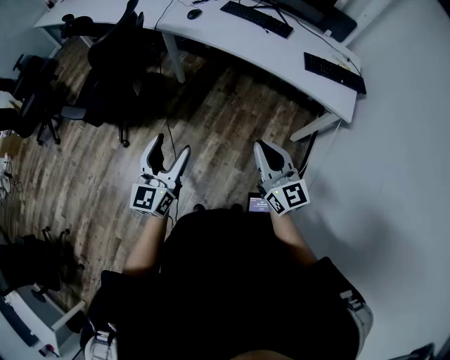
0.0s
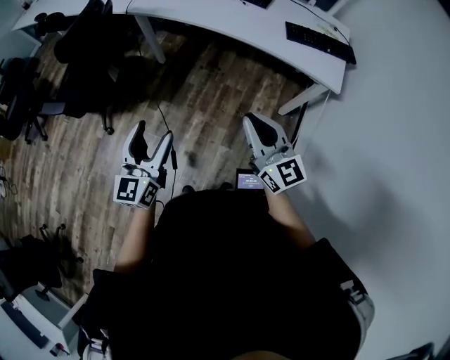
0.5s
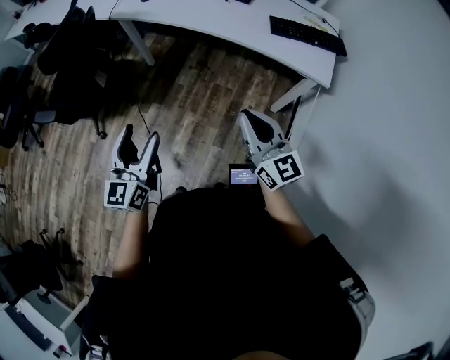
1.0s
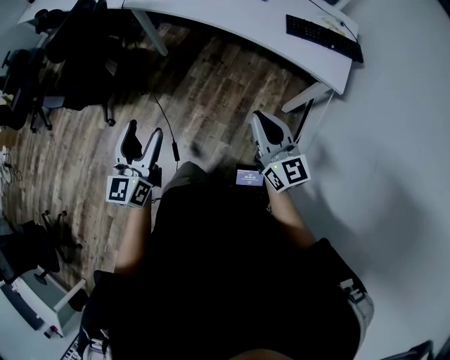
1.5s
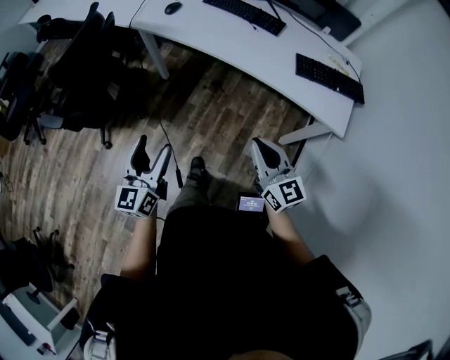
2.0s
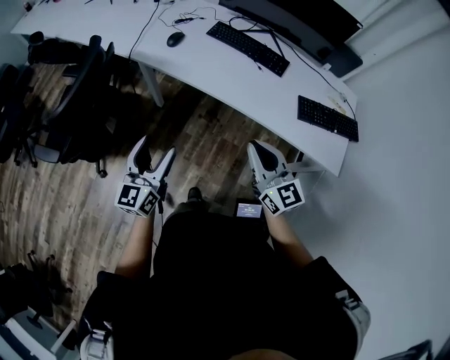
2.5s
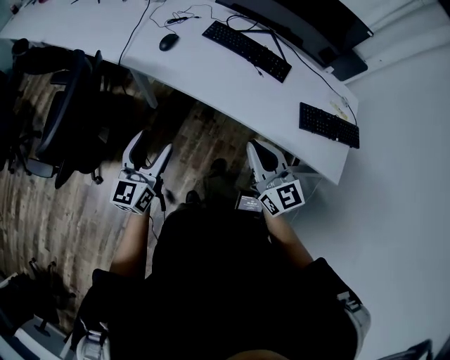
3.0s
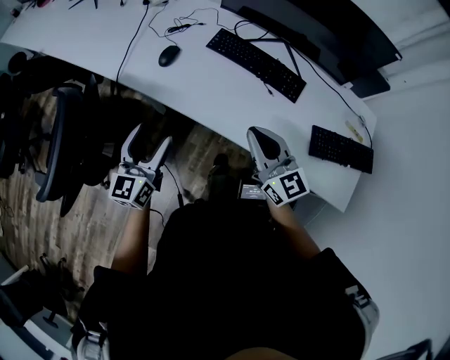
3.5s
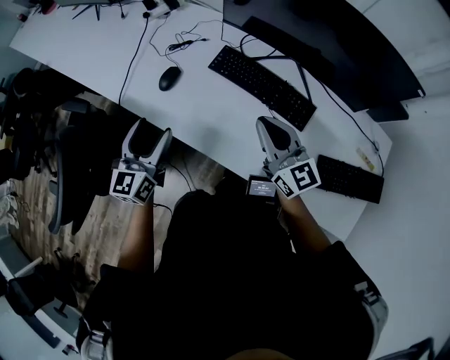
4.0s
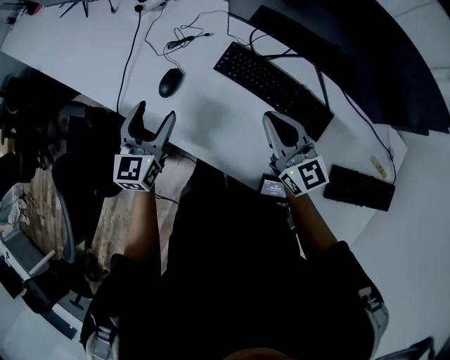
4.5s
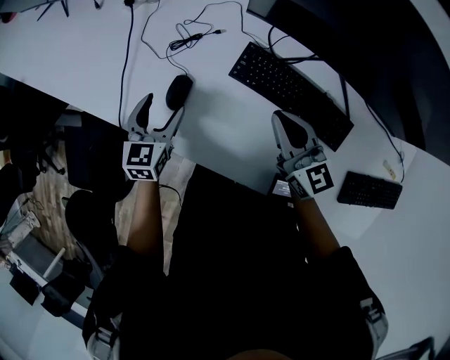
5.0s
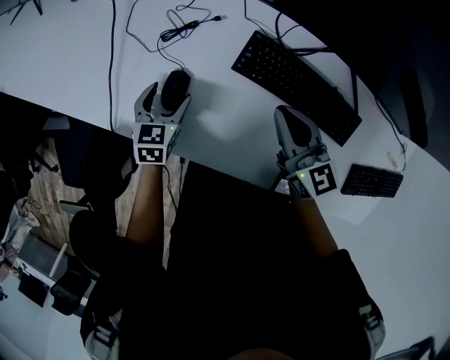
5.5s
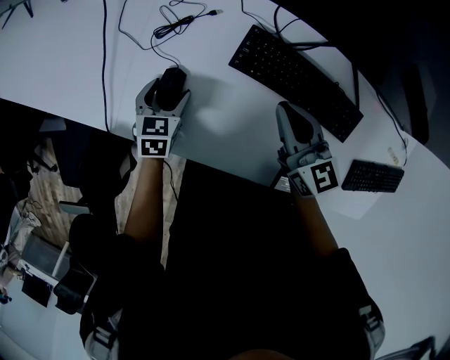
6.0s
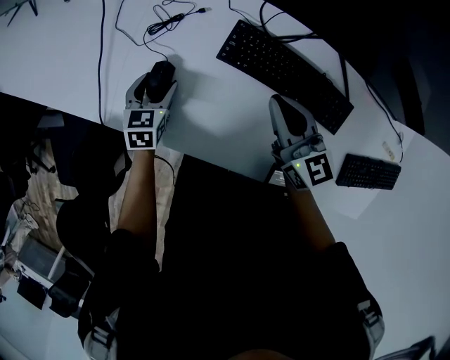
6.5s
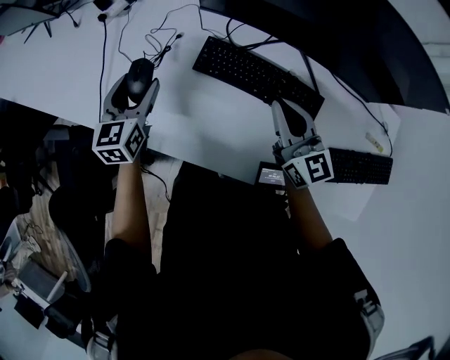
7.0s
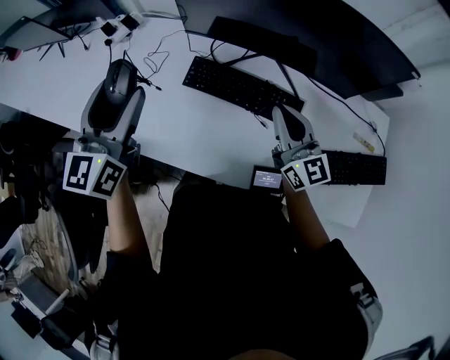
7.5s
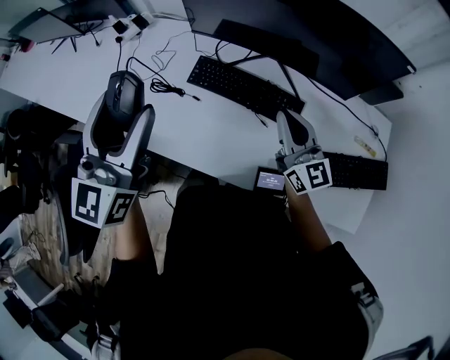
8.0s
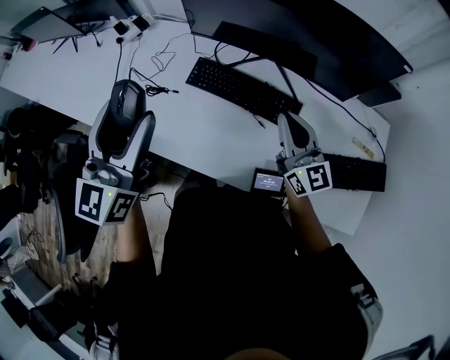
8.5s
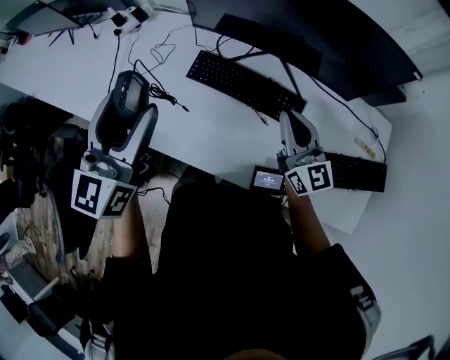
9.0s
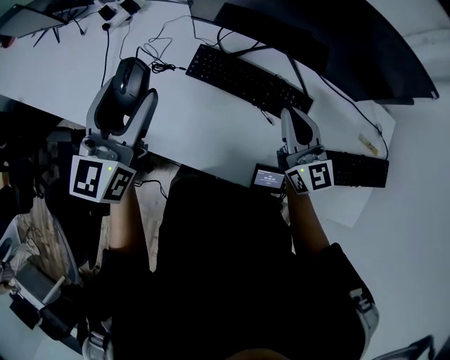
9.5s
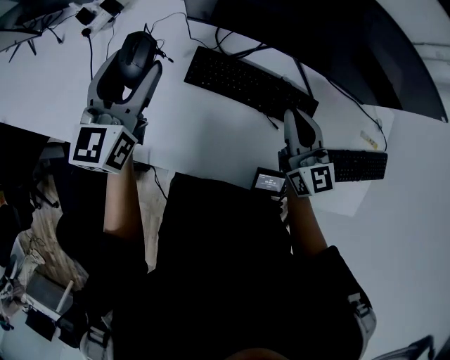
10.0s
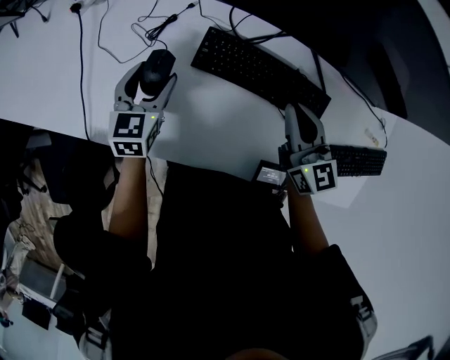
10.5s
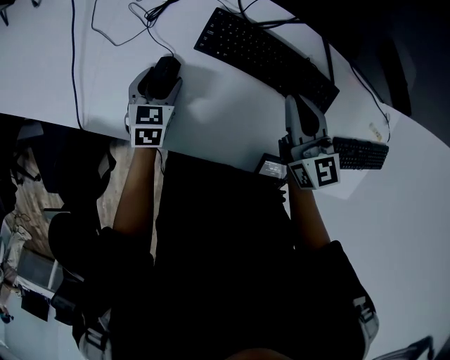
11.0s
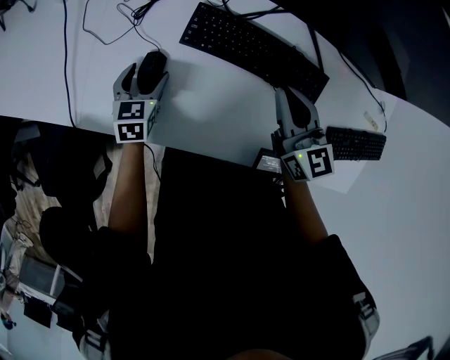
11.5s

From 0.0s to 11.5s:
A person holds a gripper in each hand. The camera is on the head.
From 0.0s to 2.0s: The two grippers go about 15 cm forward, to the right and downward.
From 2.0s to 4.0s: The two grippers travel together, forward, roughly 60 cm.
From 4.0s to 6.0s: The left gripper moves downward and forward, roughly 35 cm, and tilts its fingers about 40 degrees downward. Meanwhile the right gripper goes approximately 25 cm forward and downward, and swivels roughly 20 degrees.
From 6.0s to 7.5s: The left gripper is displaced upward by some 40 cm, and points its fingers approximately 50 degrees further upward; the right gripper travels to the right, upward and backward by approximately 25 cm, and turns by approximately 20 degrees.
From 7.5s to 9.5s: The left gripper moves some 10 cm backward and comes back.
From 9.5s to 11.5s: The right gripper goes roughly 10 cm downward and to the left. The left gripper goes some 35 cm downward, and tips its fingers downward by some 40 degrees.

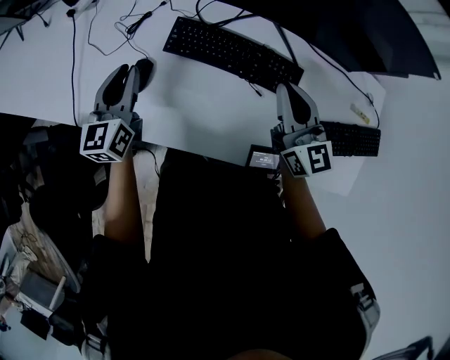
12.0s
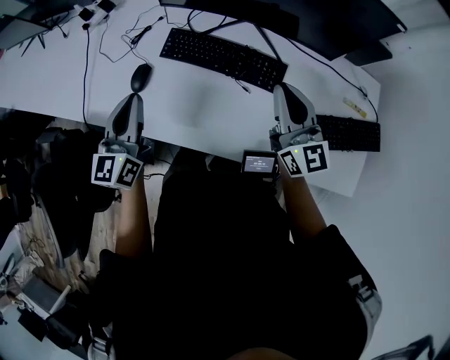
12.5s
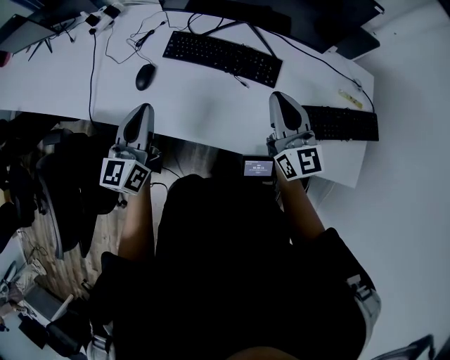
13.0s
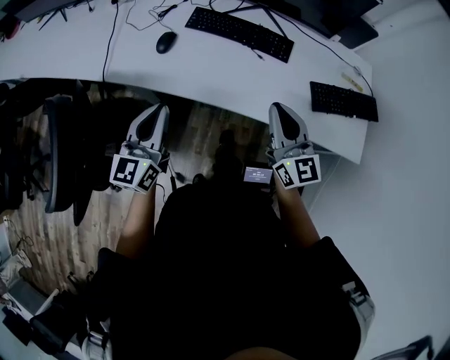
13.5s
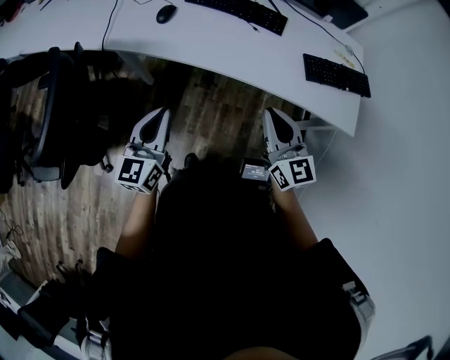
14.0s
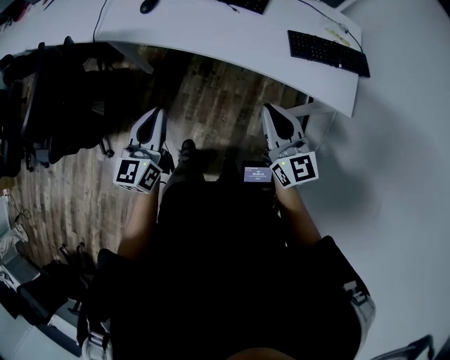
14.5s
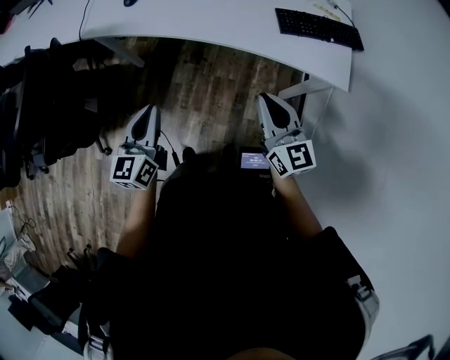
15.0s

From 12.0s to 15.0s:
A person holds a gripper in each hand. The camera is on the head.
From 12.0s to 13.5s: Both grippers move backward, approximately 30 cm.
From 13.5s to 15.0s: Both grippers travel together backward and to the right, roughly 25 cm.

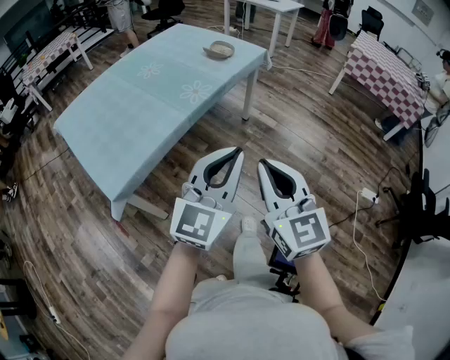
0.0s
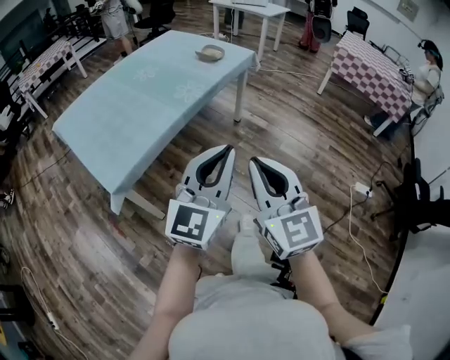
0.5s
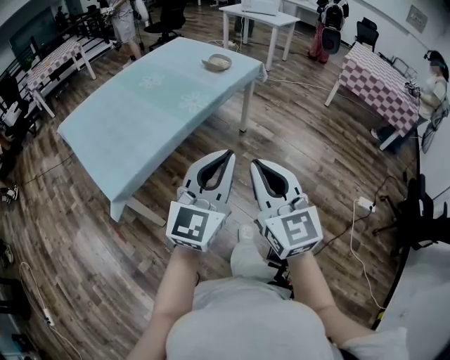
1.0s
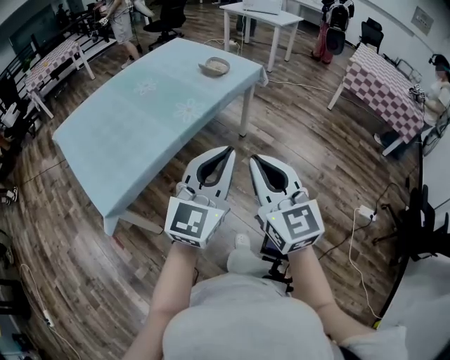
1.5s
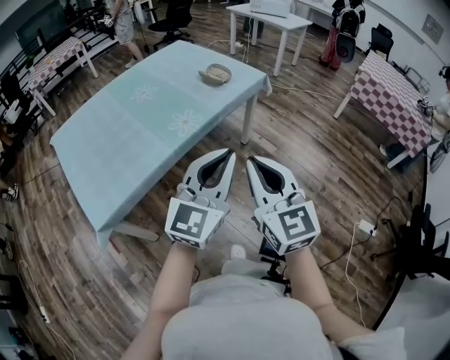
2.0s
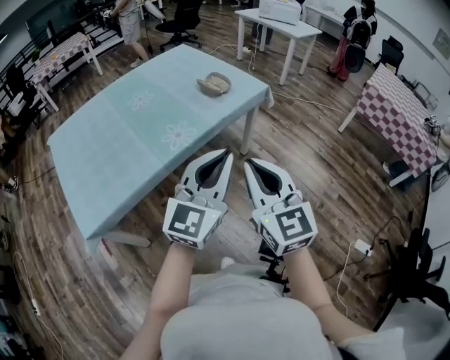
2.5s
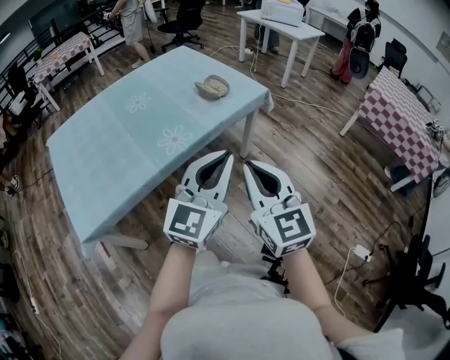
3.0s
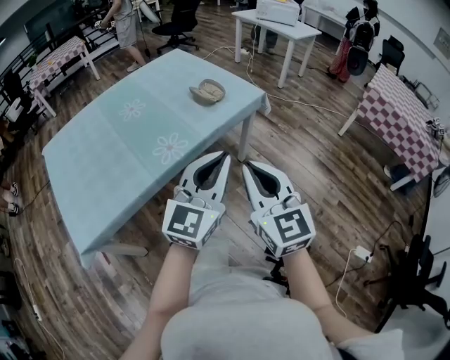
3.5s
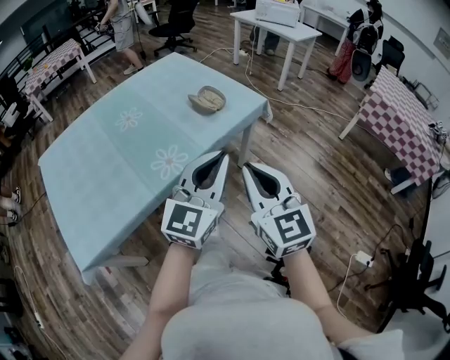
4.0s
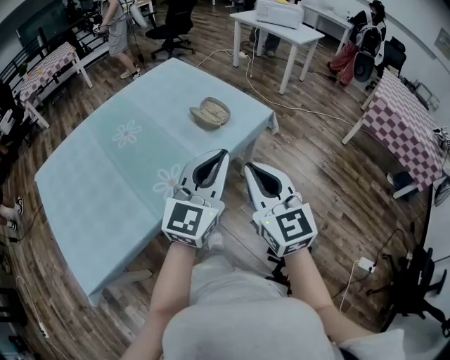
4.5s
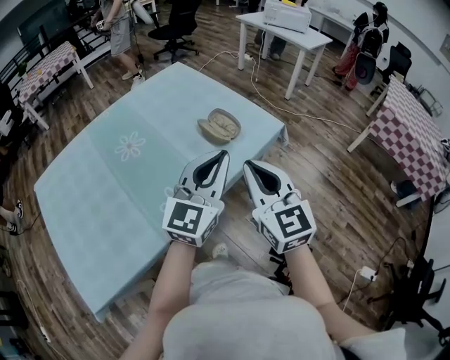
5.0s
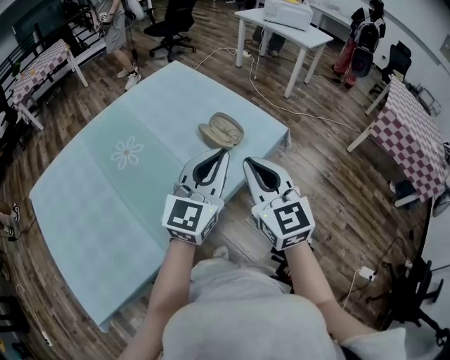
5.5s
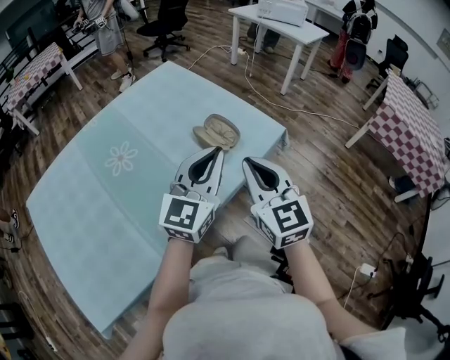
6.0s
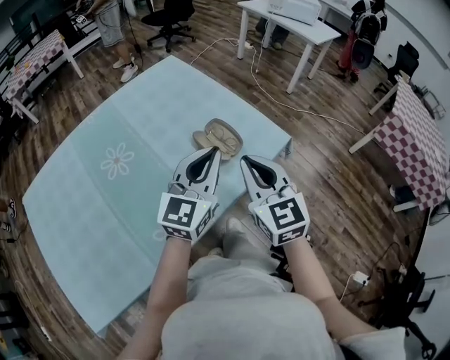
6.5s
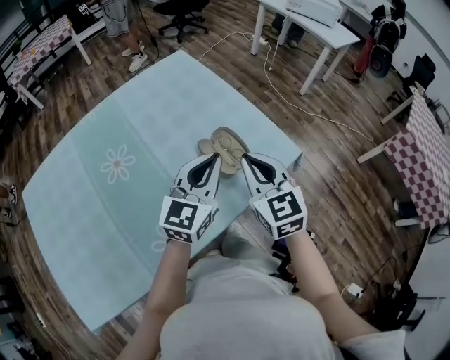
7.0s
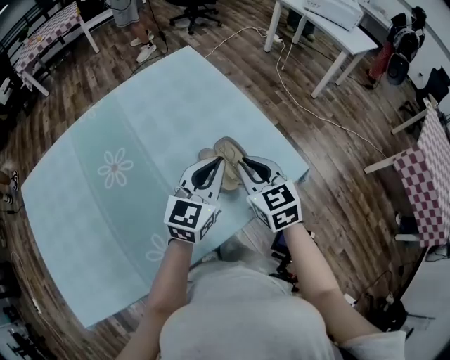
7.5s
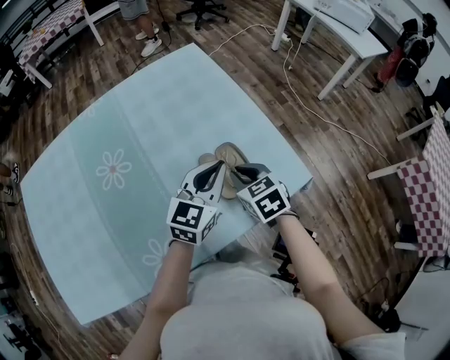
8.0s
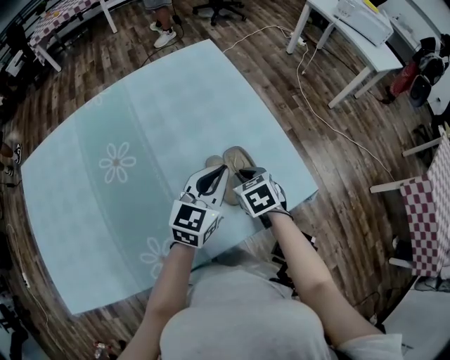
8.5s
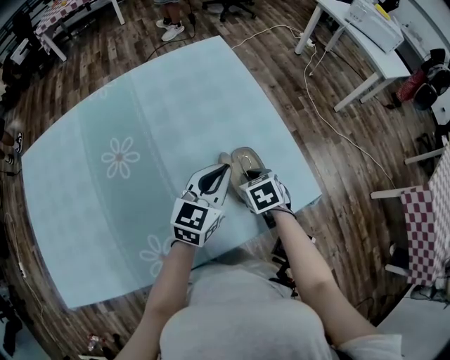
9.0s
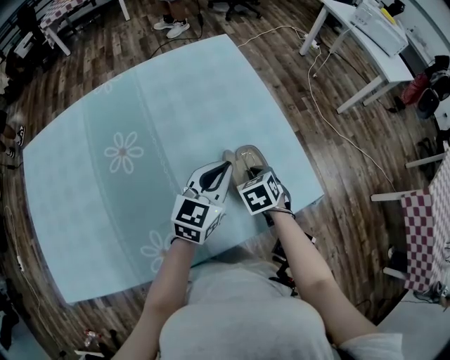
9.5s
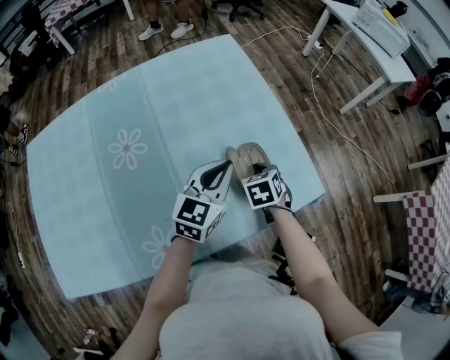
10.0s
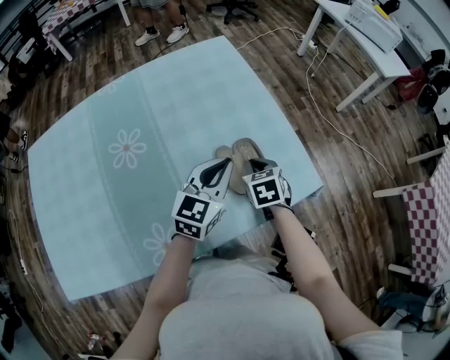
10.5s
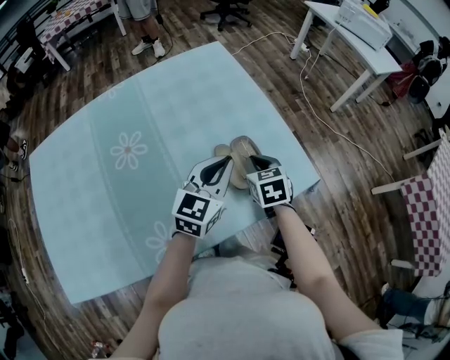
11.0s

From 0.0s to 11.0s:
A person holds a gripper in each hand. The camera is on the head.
From 0.0s to 2.0s: Both grippers travel together forward, roughly 15 cm.
From 2.0s to 3.5s: The right gripper travels forward and to the right by about 15 cm; the left gripper shifts roughly 15 cm forward.
From 3.5s to 5.5s: The grippers both shift forward by about 30 cm.
From 5.5s to 7.5s: Both grippers travel together forward and downward, about 25 cm. The right gripper swivels approximately 30 degrees.
From 7.5s to 9.0s: The right gripper shifts roughly 15 cm downward, and angles its fingers downward, by approximately 30 degrees. Meanwhile the left gripper heads downward, covering approximately 5 cm.
From 9.0s to 11.0s: The right gripper is displaced upward by some 5 cm, while the left gripper moves approximately 5 cm.

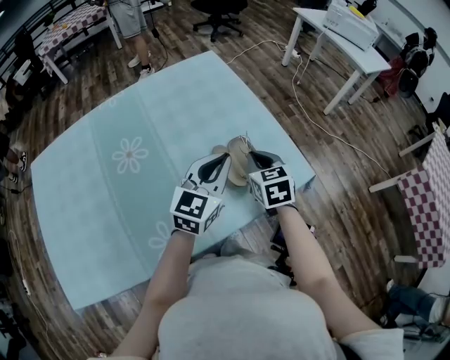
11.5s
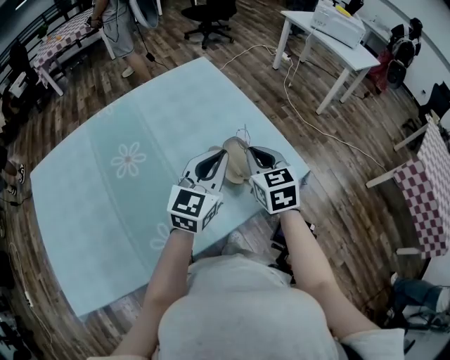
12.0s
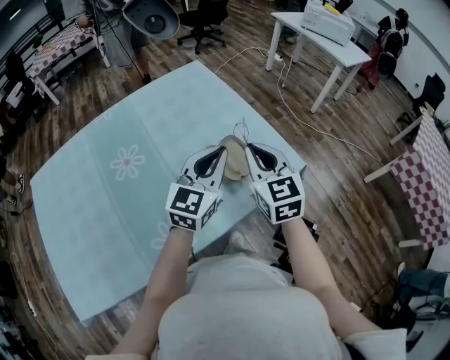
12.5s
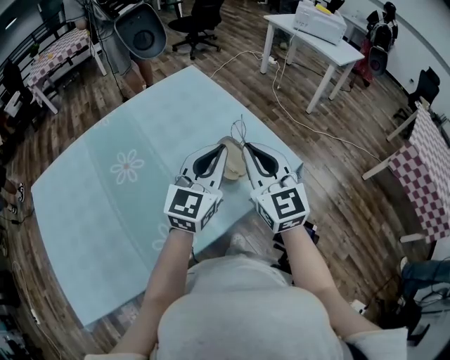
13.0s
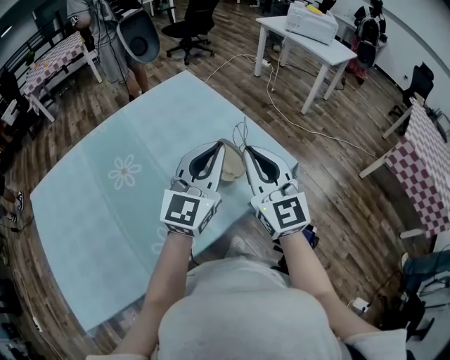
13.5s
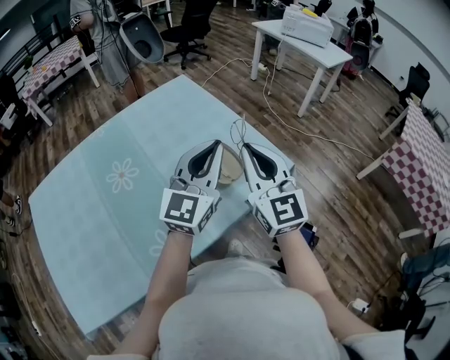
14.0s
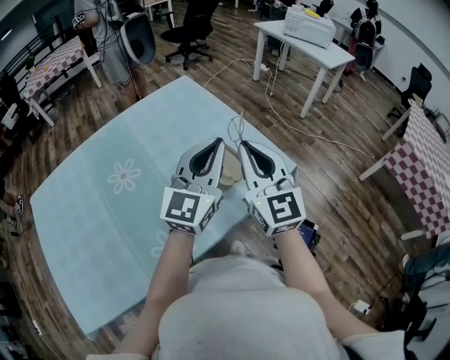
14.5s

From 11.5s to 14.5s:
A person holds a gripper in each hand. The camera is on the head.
From 11.5s to 13.0s: The left gripper heads upward, covering about 5 cm; the right gripper moves upward and backward, about 20 cm, and points its fingers about 40 degrees further upward.
From 13.0s to 14.5s: The left gripper moves roughly 5 cm.
